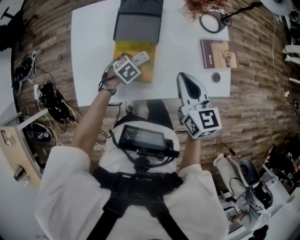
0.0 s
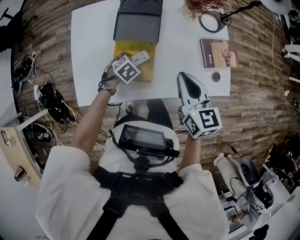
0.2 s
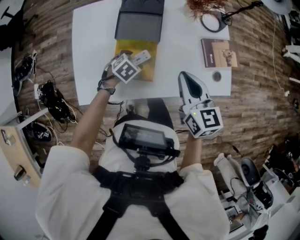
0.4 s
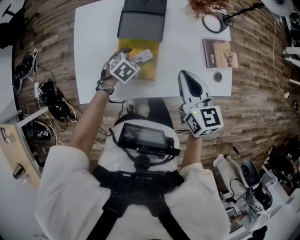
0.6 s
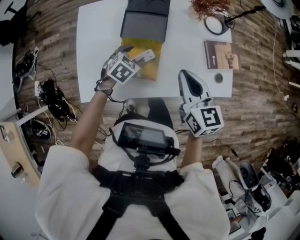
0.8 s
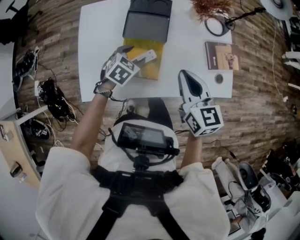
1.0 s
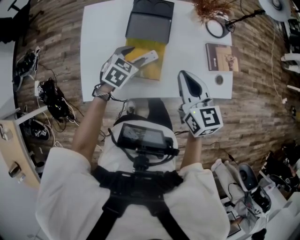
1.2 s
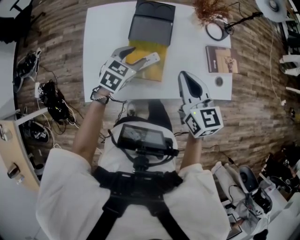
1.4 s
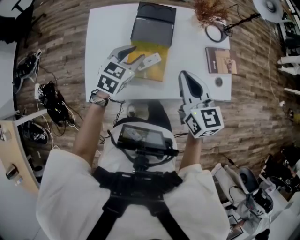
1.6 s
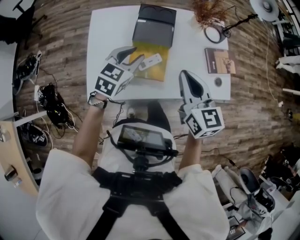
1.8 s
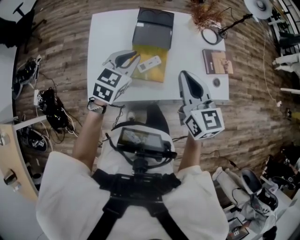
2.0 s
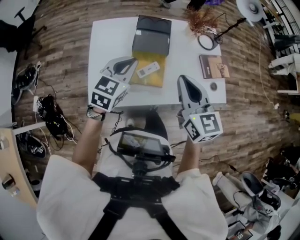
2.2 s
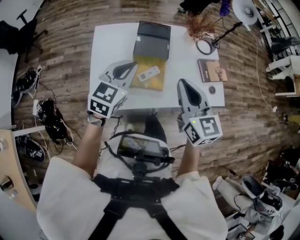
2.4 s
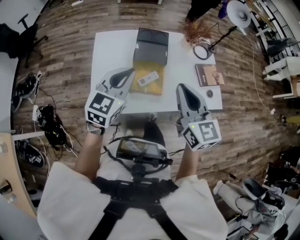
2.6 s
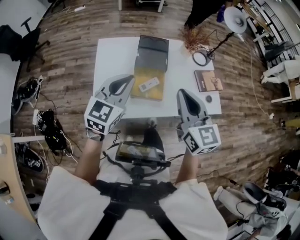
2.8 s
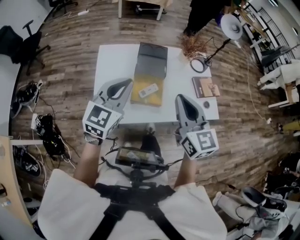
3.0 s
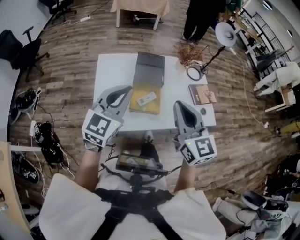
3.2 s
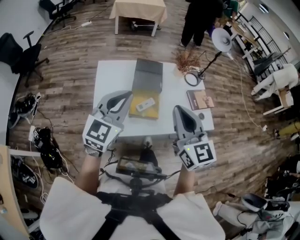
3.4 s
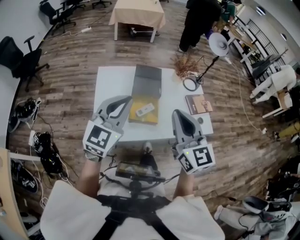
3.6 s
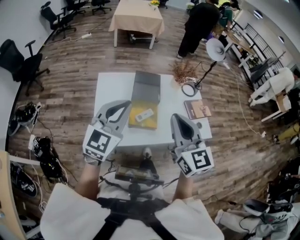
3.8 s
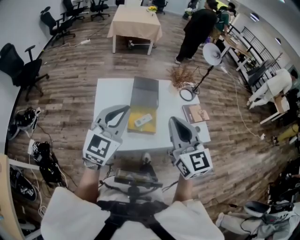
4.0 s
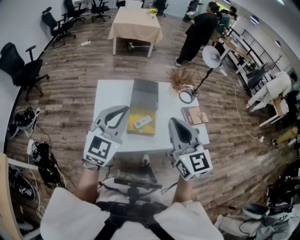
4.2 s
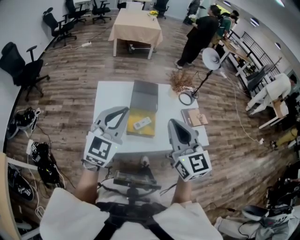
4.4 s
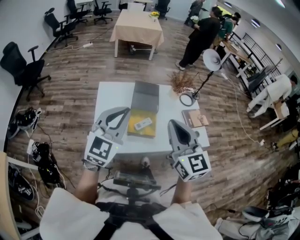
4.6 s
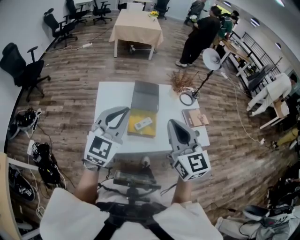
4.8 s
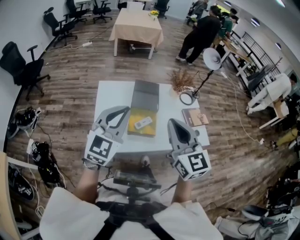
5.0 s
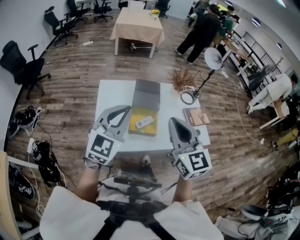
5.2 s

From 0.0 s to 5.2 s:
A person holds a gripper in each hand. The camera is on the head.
From 0.0 s to 1.8 s: The right gripper travels upward, to the left and backward by approximately 10 cm. The left gripper is displaced upward by some 25 cm, tips its fingers upward by about 40 degrees, and closes up.
From 1.8 s to 3.4 s: Both grippers move upward and backward, roughly 20 cm. The left gripper changes its angle by about 30 degrees, and closes up.
From 3.4 s to 5.2 s: The grippers stay close to where they were, moving slightly.

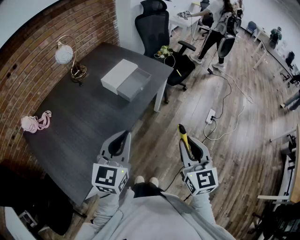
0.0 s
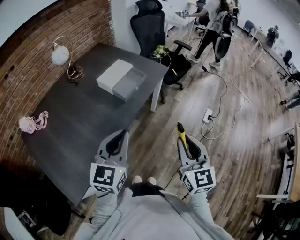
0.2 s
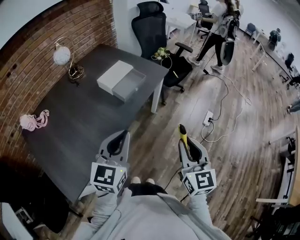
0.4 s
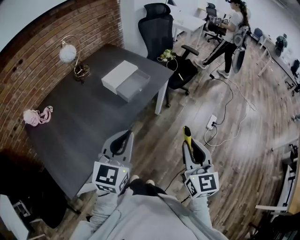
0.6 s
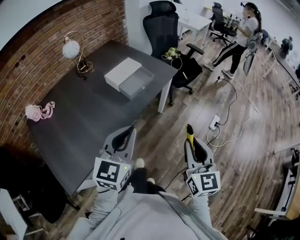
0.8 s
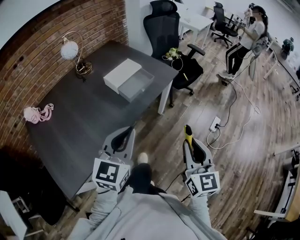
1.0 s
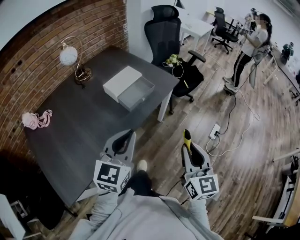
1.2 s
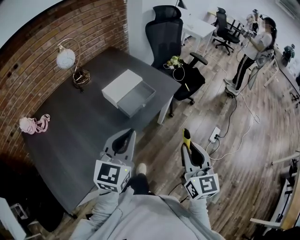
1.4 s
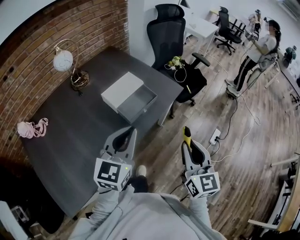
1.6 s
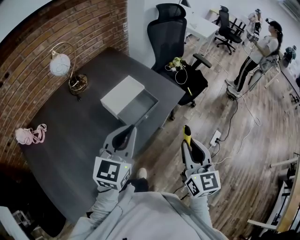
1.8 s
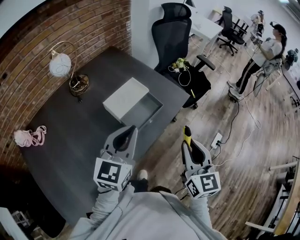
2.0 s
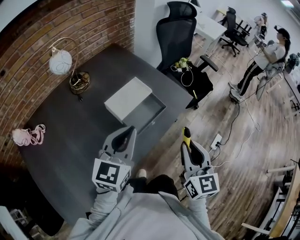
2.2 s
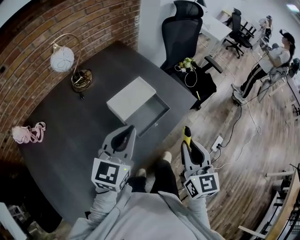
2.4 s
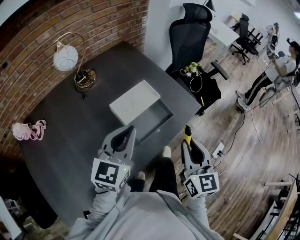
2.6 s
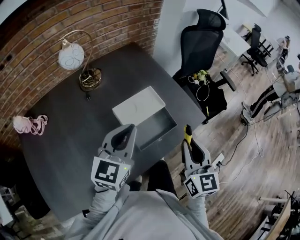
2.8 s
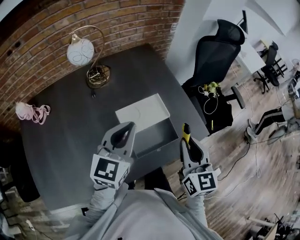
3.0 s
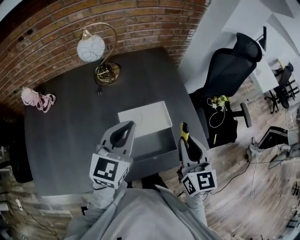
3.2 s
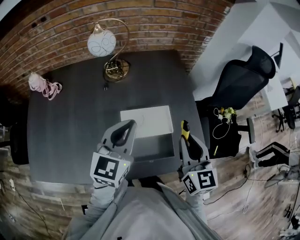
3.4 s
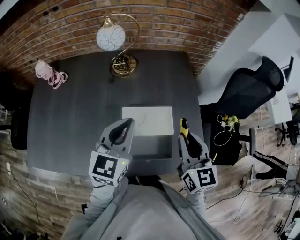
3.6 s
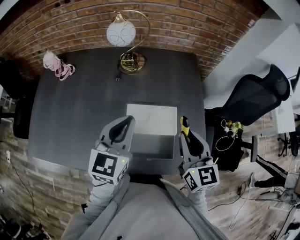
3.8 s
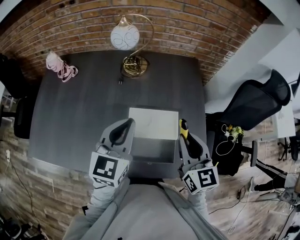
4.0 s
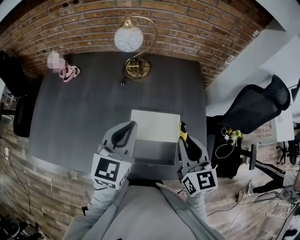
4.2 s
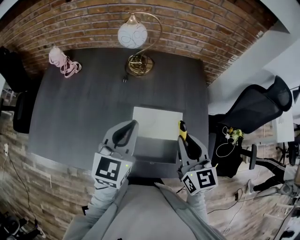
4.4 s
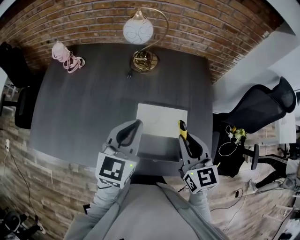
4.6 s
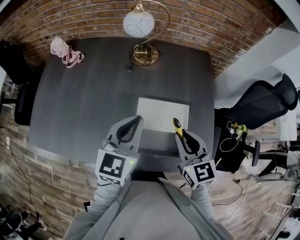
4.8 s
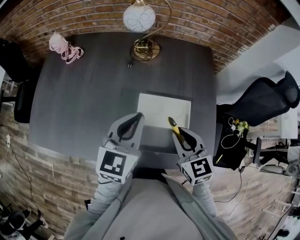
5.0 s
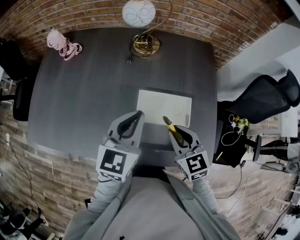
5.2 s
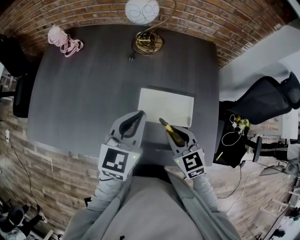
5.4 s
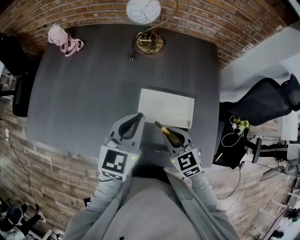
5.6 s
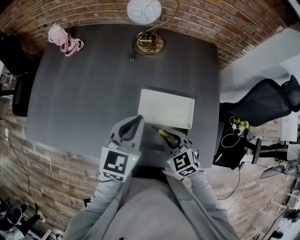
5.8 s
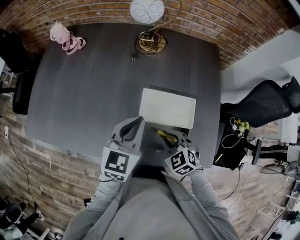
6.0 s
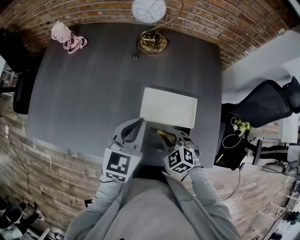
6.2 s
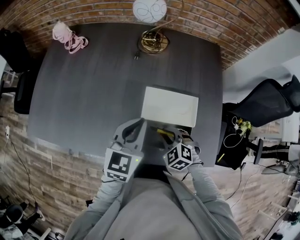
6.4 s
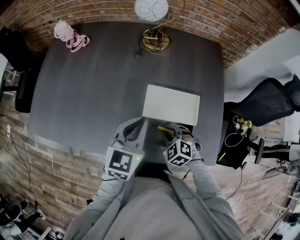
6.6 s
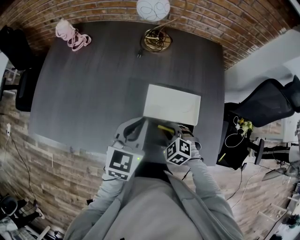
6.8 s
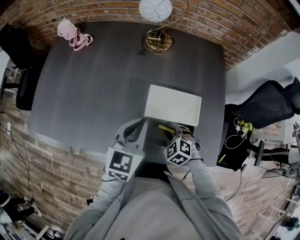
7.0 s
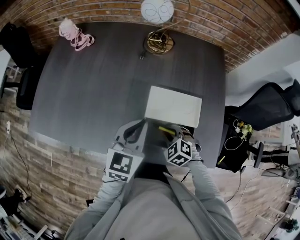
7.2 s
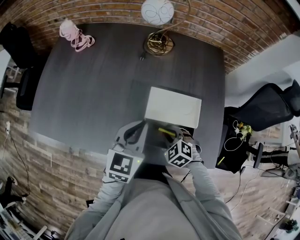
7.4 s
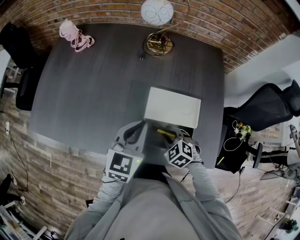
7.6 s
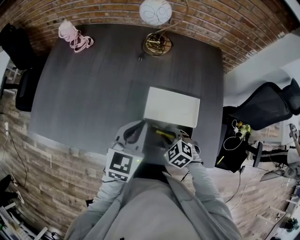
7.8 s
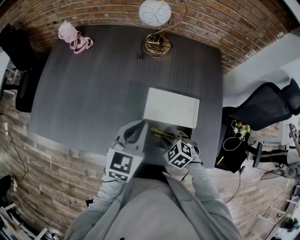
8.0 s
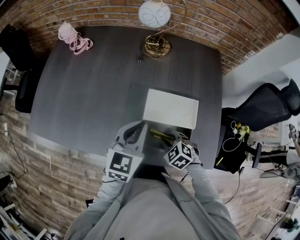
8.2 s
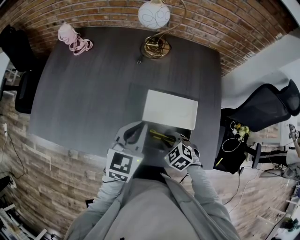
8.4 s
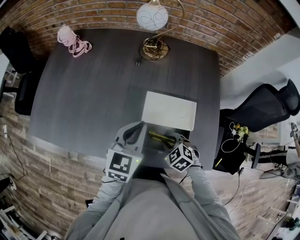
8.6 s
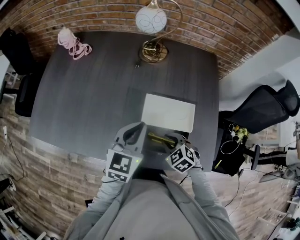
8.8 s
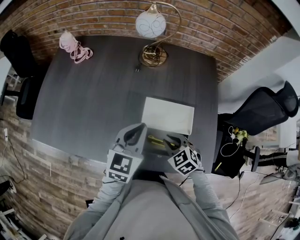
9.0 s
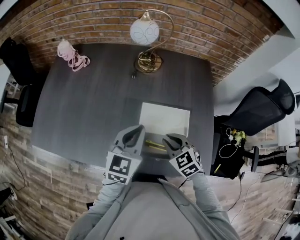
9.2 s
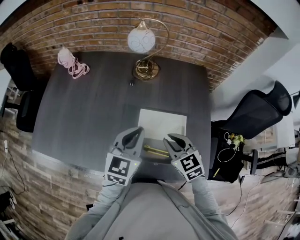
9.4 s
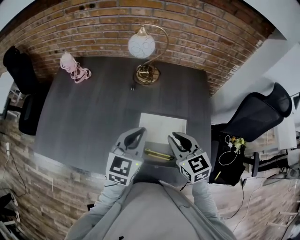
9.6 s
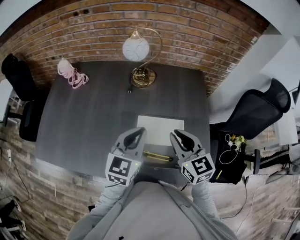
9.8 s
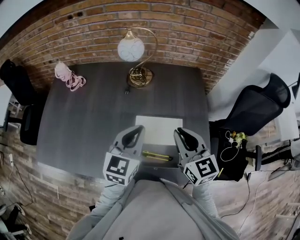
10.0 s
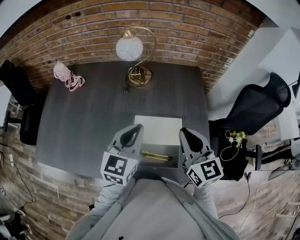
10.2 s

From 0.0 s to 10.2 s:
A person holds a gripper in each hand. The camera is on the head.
From 0.0 s to 1.4 s: The two grippers go some 10 cm forward.
From 1.4 s to 3.0 s: Both grippers travel together forward, about 30 cm. The right gripper rotates approximately 20 degrees.
From 3.0 s to 4.4 s: The right gripper changes place by some 15 cm, and rotates approximately 40 degrees. Meanwhile the left gripper turns by about 30 degrees.
From 4.4 s to 5.8 s: The left gripper is displaced downward by approximately 5 cm, while the right gripper is displaced downward and to the left by about 20 cm, and turns by roughly 40 degrees.
From 5.8 s to 7.2 s: The right gripper goes roughly 5 cm downward, and turns by roughly 20 degrees.
From 7.2 s to 8.8 s: The grippers move only a little.
From 8.8 s to 10.2 s: The right gripper heads upward, covering roughly 25 cm, and tips its fingers upward by about 50 degrees; the left gripper goes approximately 10 cm upward.

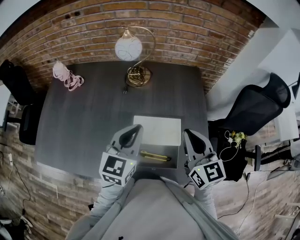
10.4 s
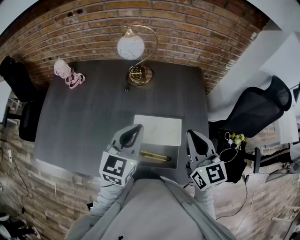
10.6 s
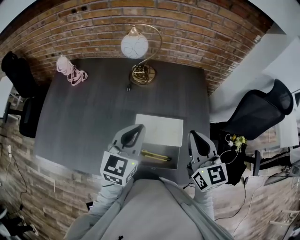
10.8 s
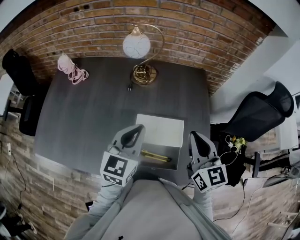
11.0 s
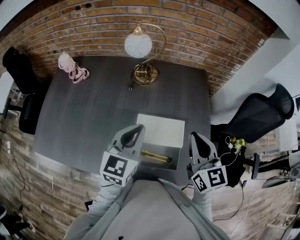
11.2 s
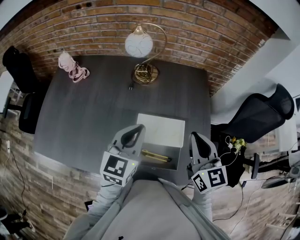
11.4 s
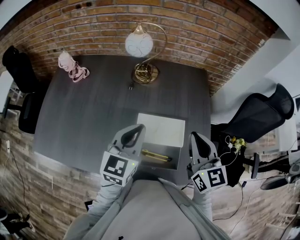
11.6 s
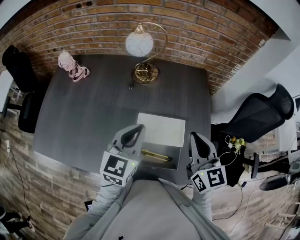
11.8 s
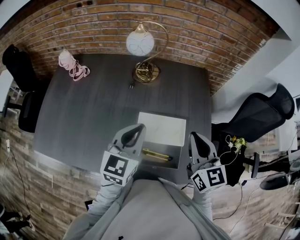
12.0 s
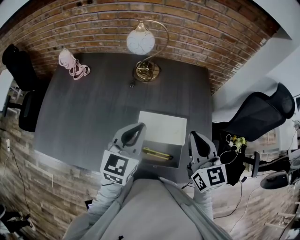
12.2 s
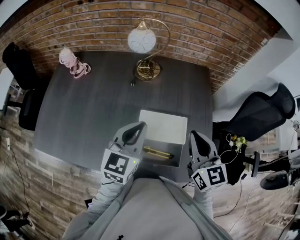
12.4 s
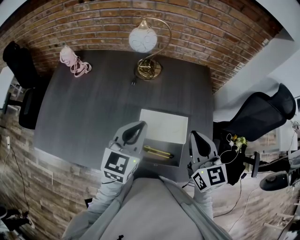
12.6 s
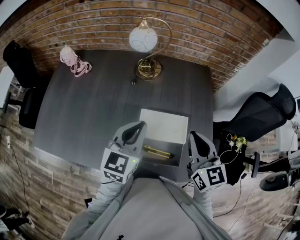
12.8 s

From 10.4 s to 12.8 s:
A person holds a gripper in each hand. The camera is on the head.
From 10.4 s to 11.6 s: Neither gripper changes place.
From 11.6 s to 12.8 s: The grippers move only a little.

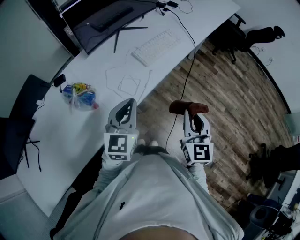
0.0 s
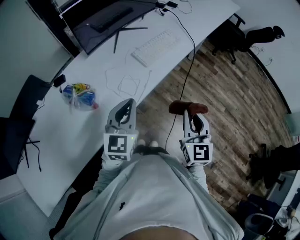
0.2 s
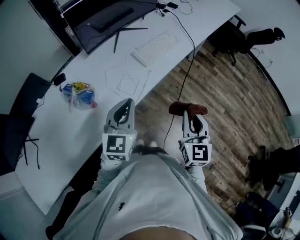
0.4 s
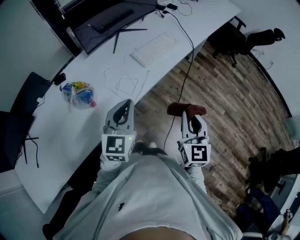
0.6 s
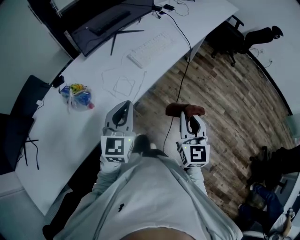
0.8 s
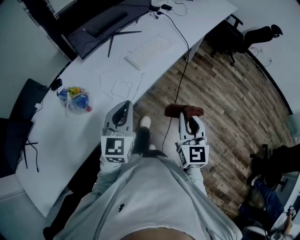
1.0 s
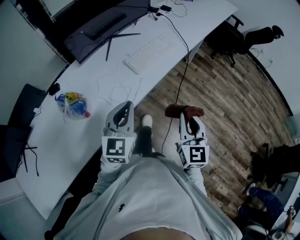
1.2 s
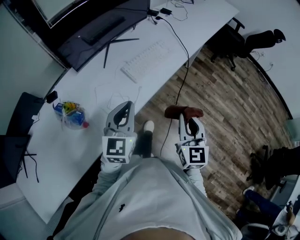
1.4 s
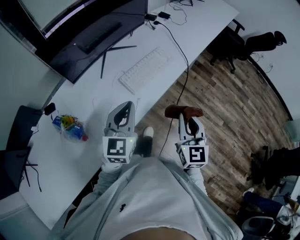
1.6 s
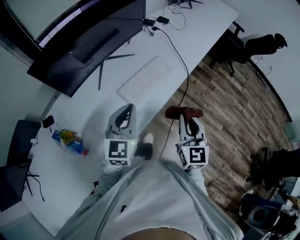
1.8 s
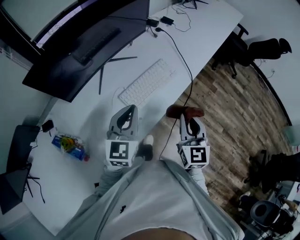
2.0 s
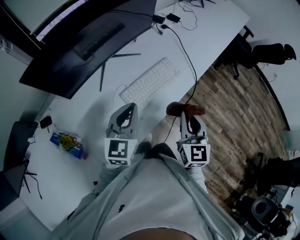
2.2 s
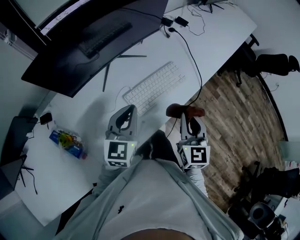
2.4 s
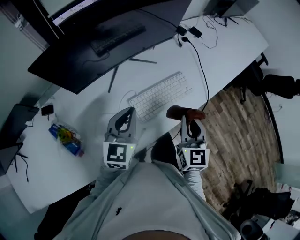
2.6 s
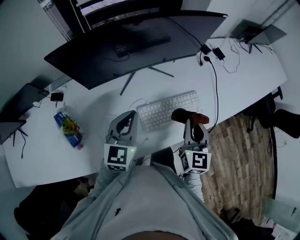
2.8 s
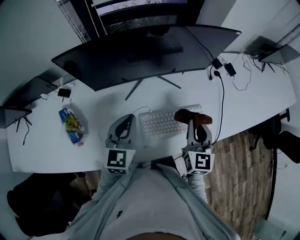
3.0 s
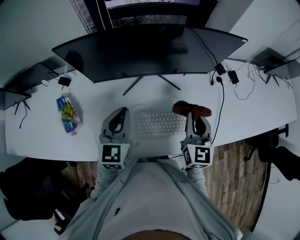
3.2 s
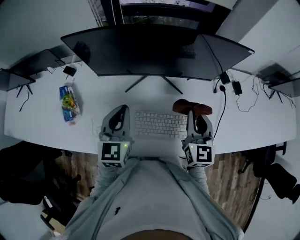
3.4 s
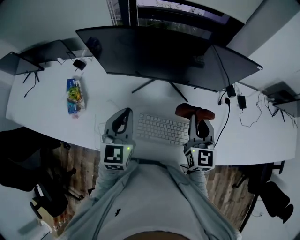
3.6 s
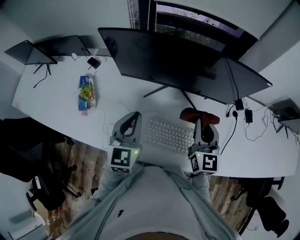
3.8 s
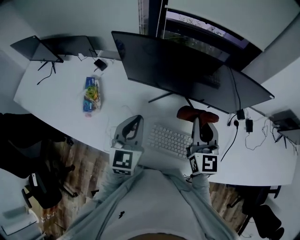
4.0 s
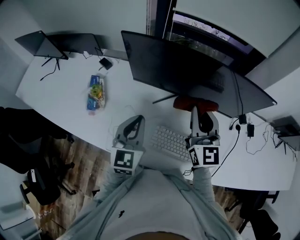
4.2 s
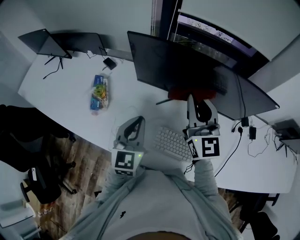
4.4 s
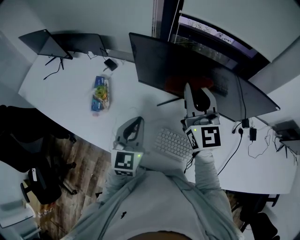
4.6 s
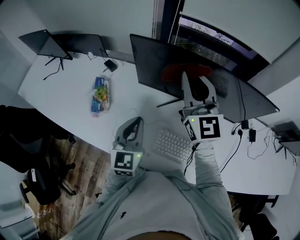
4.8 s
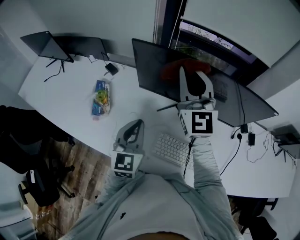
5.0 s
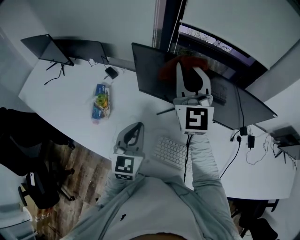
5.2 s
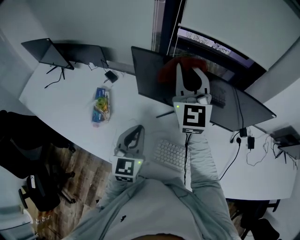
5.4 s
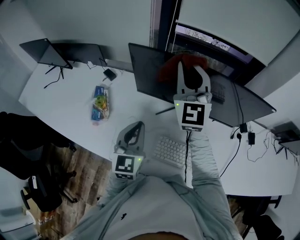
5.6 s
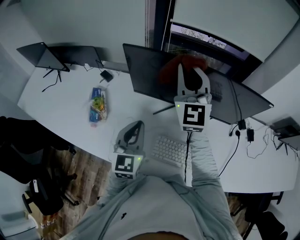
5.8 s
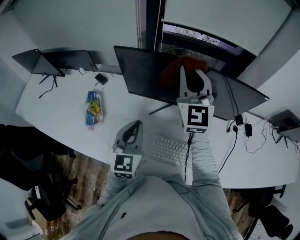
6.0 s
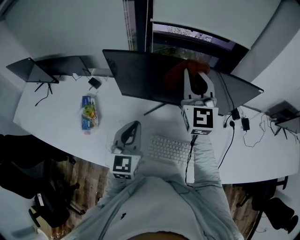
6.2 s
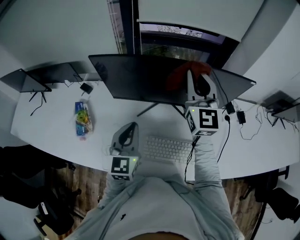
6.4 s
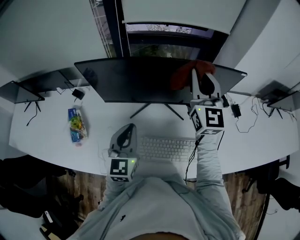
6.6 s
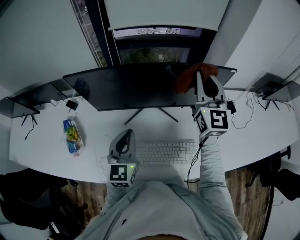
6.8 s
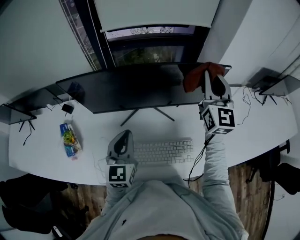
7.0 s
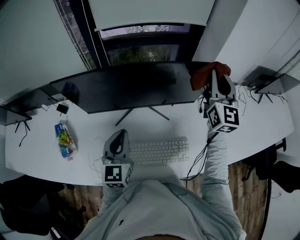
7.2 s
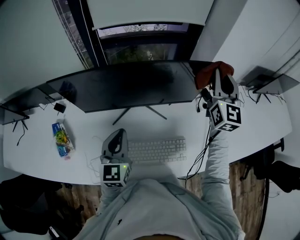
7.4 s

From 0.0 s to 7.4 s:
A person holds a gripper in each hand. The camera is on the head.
From 0.0 s to 1.4 s: The right gripper goes approximately 10 cm forward; the left gripper heads forward and to the right, covering about 10 cm.
From 1.4 s to 3.0 s: The right gripper ends up about 40 cm from where it was, and swivels some 30 degrees, while the left gripper moves some 25 cm, and swivels about 30 degrees.
From 3.0 s to 4.4 s: The right gripper moves about 25 cm, and rotates some 50 degrees, while the left gripper moves some 5 cm, and swivels about 30 degrees.
From 4.4 s to 6.0 s: The right gripper shifts roughly 10 cm forward and upward.
From 6.0 s to 7.4 s: The right gripper shifts roughly 35 cm to the right, and rotates roughly 30 degrees. Meanwhile the left gripper is displaced to the right by some 10 cm.
